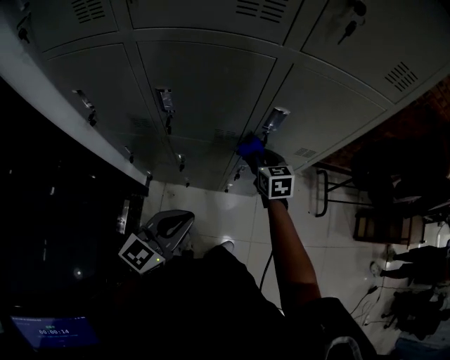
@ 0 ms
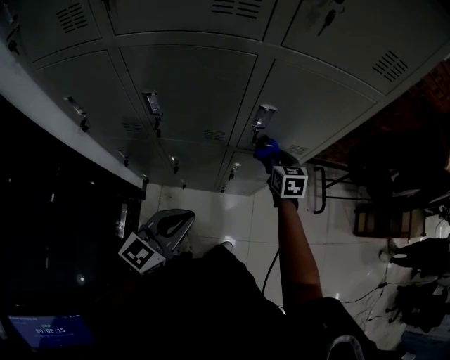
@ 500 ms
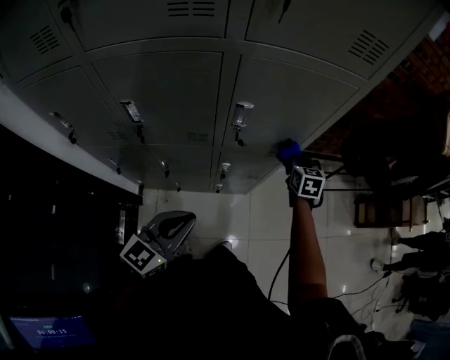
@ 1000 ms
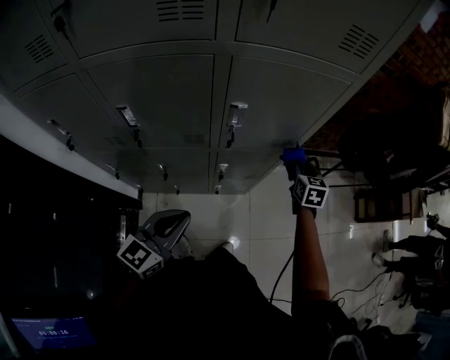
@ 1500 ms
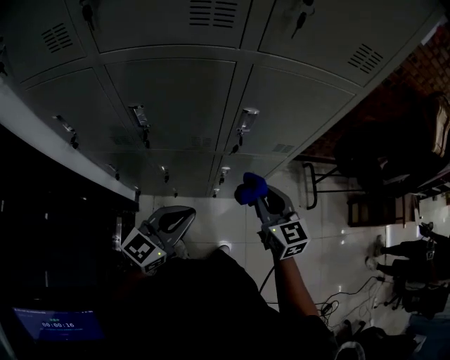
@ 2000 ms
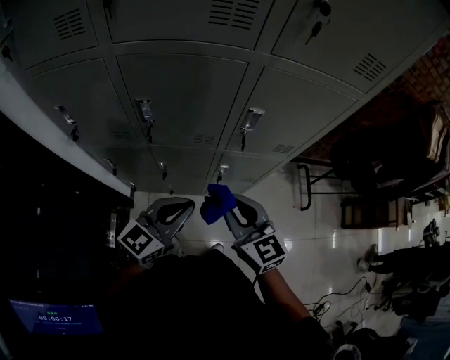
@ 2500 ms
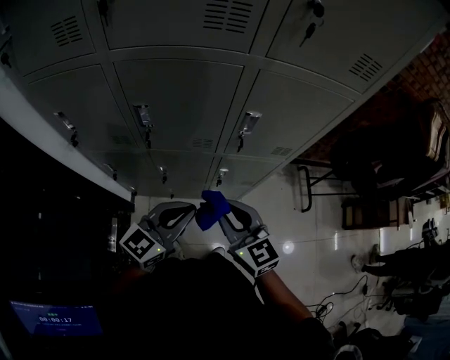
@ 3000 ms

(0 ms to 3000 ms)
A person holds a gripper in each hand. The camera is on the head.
0 ms - 1500 ms: The right gripper moves to the right, about 25 cm, and rotates some 20 degrees, while the left gripper ends up approximately 5 cm from where it was.
1500 ms - 3000 ms: The right gripper goes roughly 40 cm to the left, backward and upward, and swivels roughly 40 degrees.

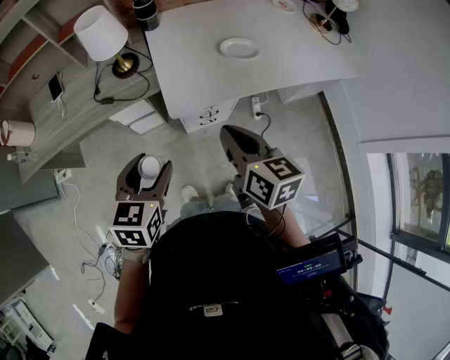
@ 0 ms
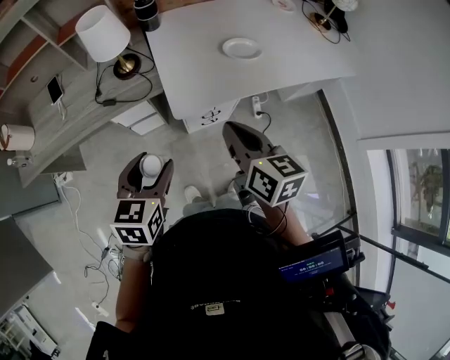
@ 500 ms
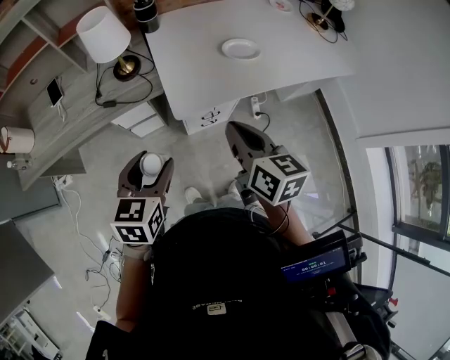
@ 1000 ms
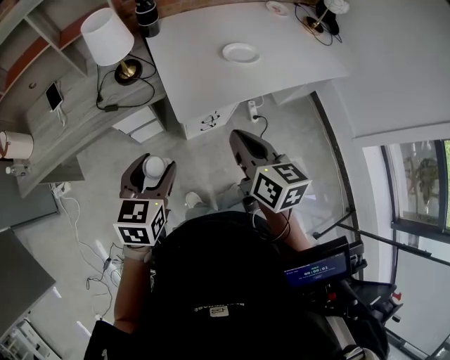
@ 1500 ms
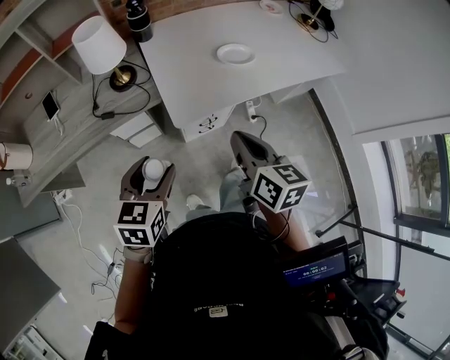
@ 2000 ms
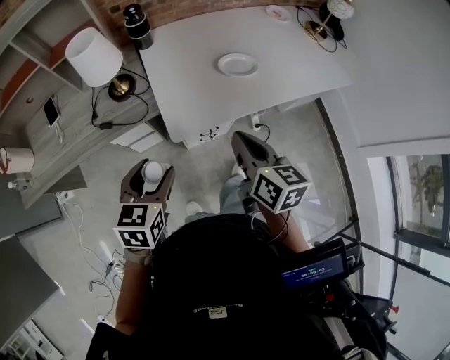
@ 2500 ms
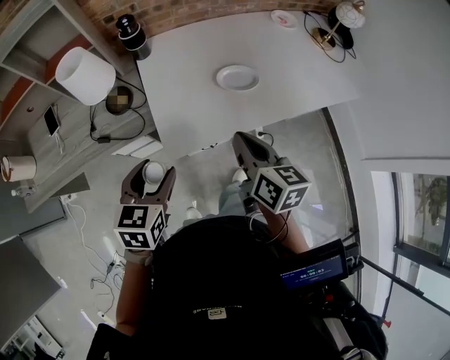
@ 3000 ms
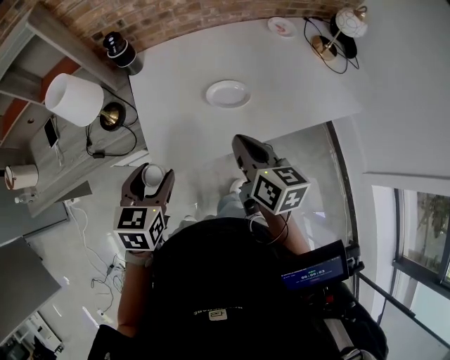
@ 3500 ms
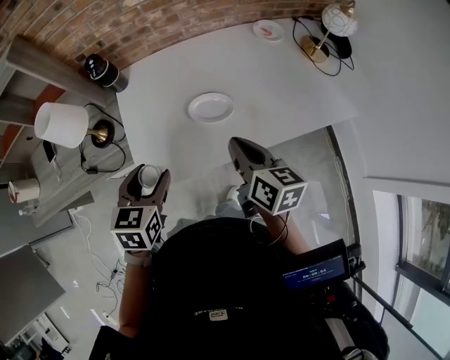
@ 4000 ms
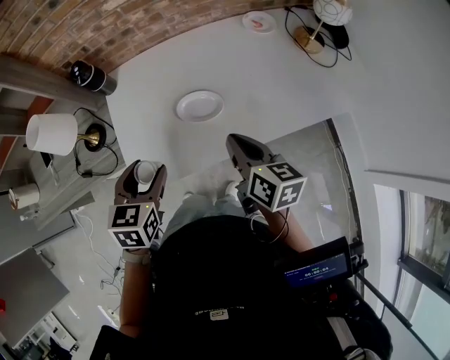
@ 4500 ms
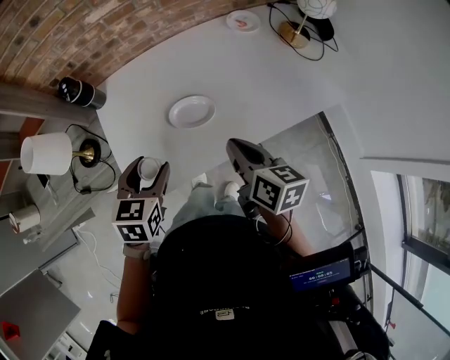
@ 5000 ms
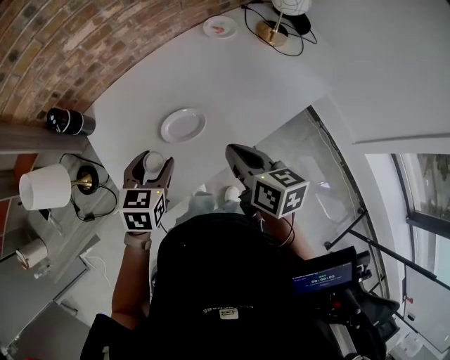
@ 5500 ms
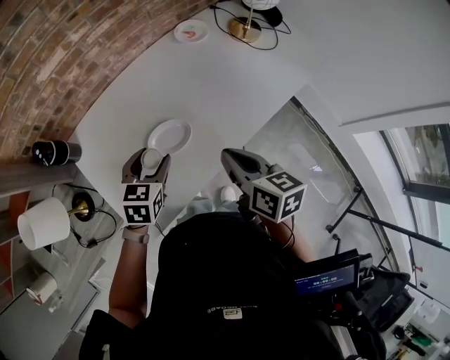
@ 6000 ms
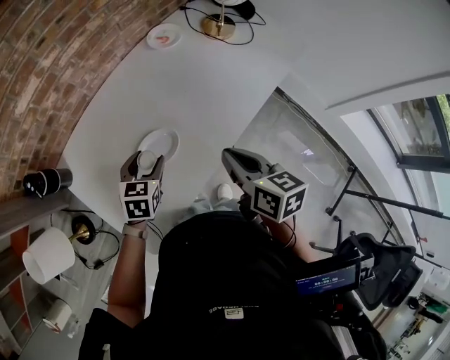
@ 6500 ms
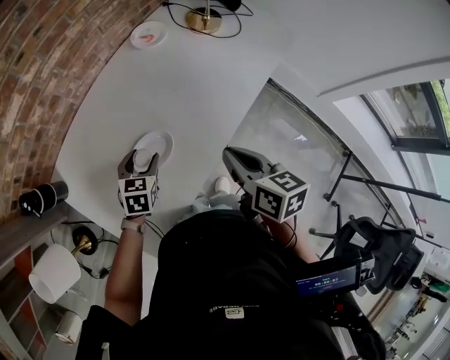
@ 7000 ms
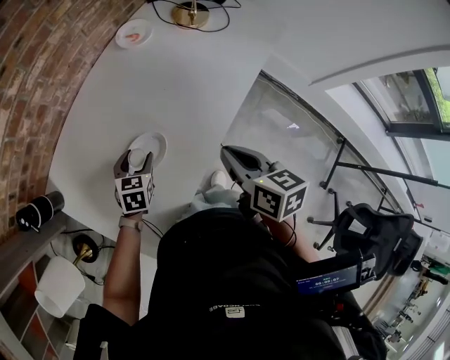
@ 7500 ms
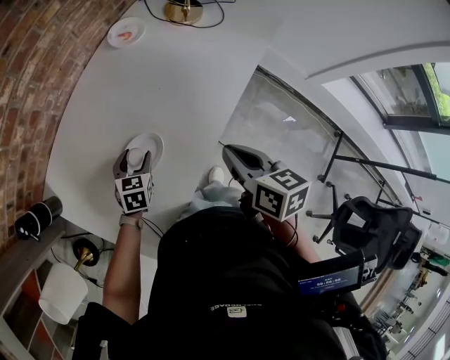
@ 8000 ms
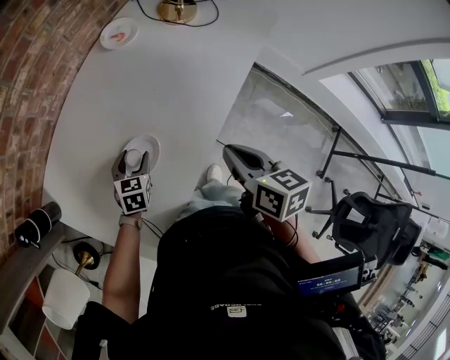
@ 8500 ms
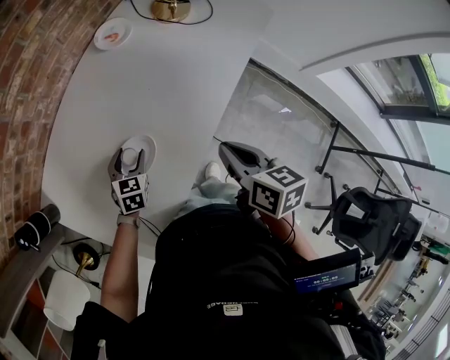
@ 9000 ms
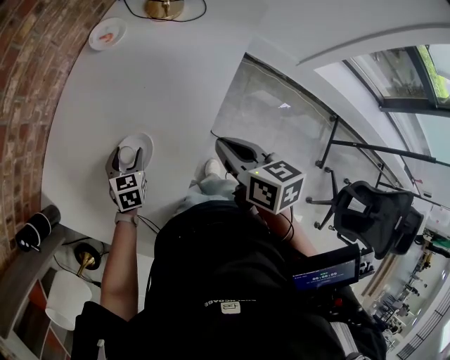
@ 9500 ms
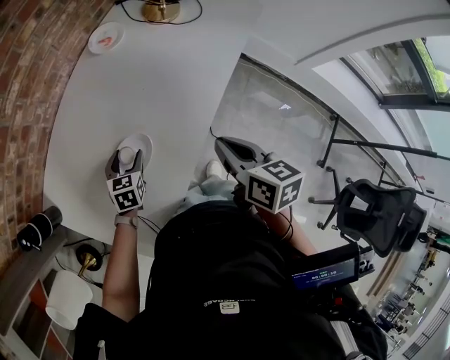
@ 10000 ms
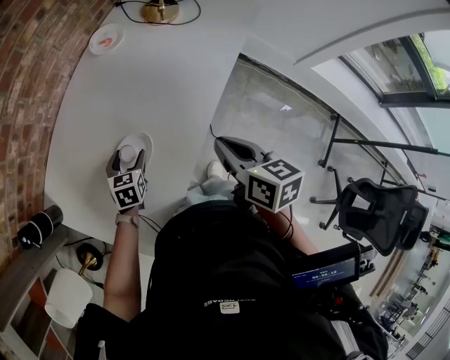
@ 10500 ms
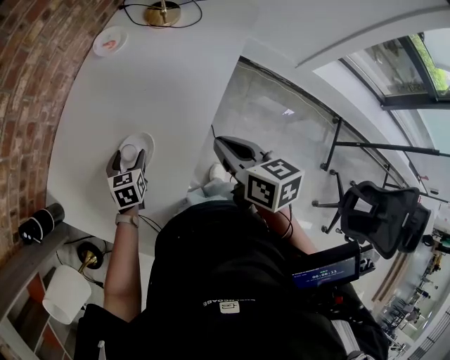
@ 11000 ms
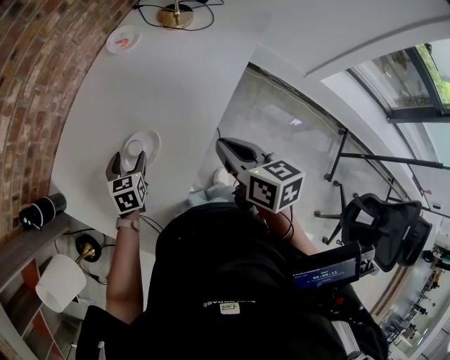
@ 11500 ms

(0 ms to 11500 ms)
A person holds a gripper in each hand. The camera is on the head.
0 ms - 2000 ms: There are only small adjustments of the grippers.
2000 ms - 4000 ms: Both grippers move forward and to the right, roughly 30 cm.
4000 ms - 6000 ms: The left gripper goes roughly 20 cm forward, to the right and downward, and swivels some 30 degrees, while the right gripper moves to the right, some 5 cm.
6000 ms - 7500 ms: The left gripper travels downward and forward by about 15 cm.
7500 ms - 9500 ms: There are only small adjustments of the grippers.
9500 ms - 11500 ms: The left gripper ends up roughly 5 cm from where it was.

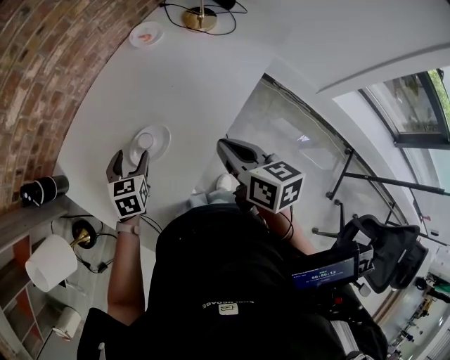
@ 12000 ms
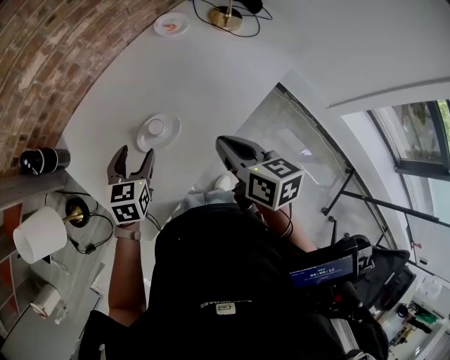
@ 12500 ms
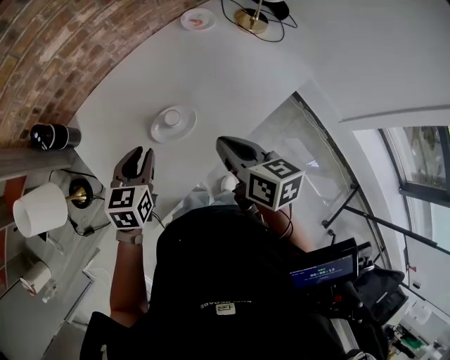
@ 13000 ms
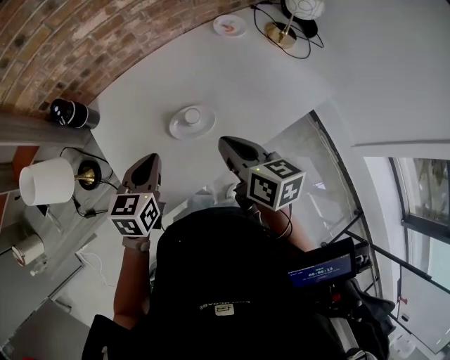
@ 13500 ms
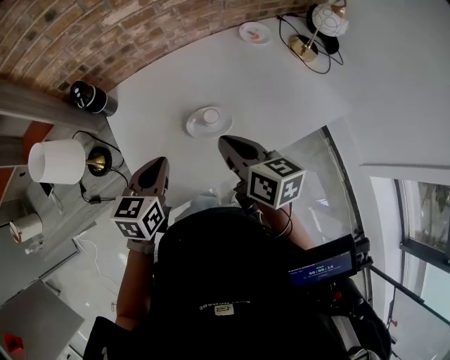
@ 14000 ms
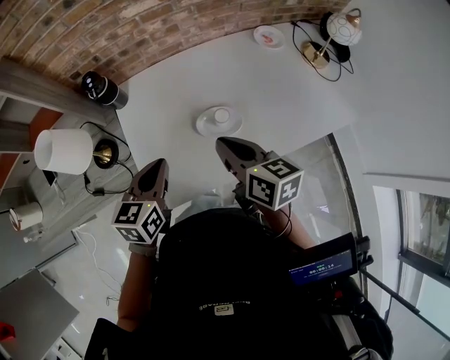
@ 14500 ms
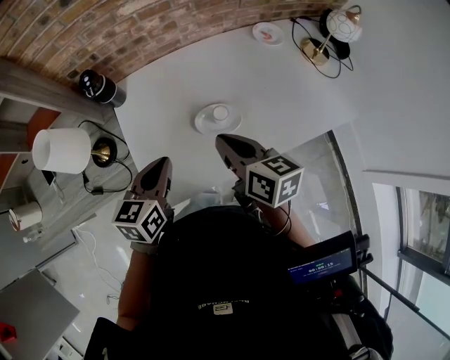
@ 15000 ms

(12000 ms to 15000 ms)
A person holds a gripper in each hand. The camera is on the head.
12000 ms - 13500 ms: The right gripper moves to the left, roughly 10 cm, and turns by some 20 degrees. The left gripper goes some 15 cm backward, upward and to the left, changes its angle by approximately 20 degrees, and closes its fingers.
13500 ms - 15000 ms: The right gripper goes about 10 cm to the left; the left gripper shifts by roughly 5 cm.

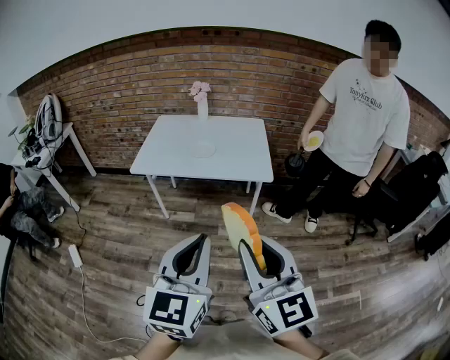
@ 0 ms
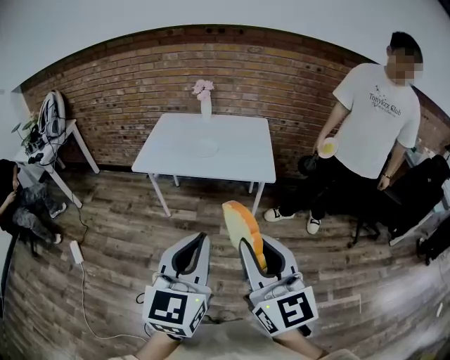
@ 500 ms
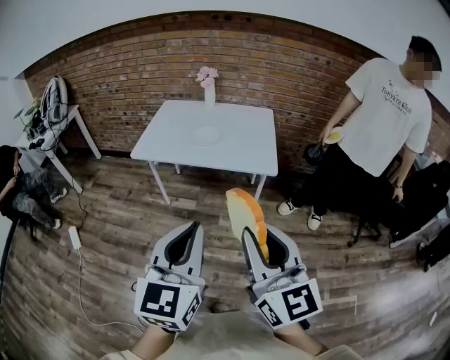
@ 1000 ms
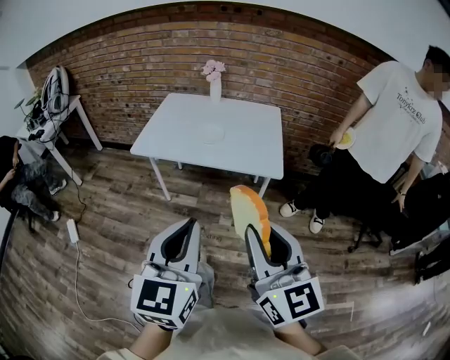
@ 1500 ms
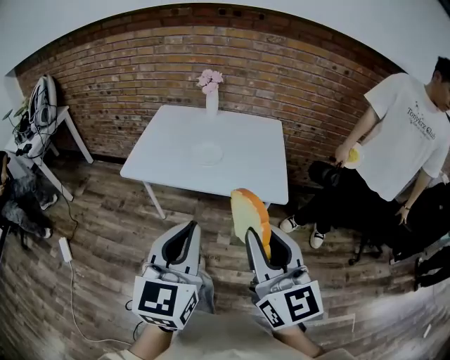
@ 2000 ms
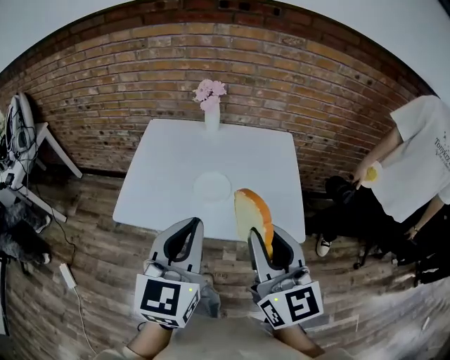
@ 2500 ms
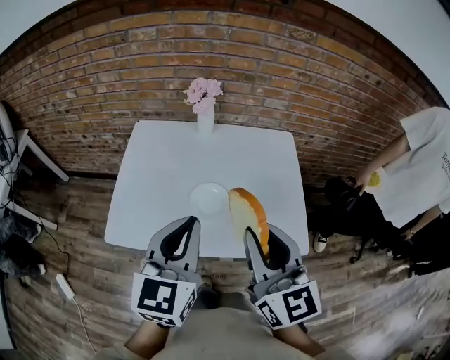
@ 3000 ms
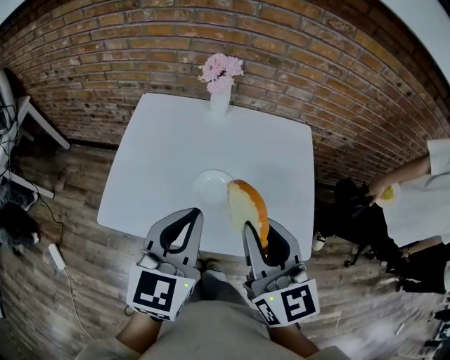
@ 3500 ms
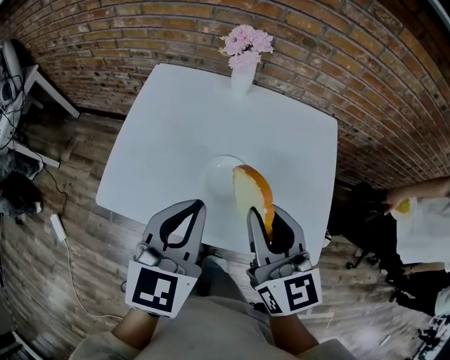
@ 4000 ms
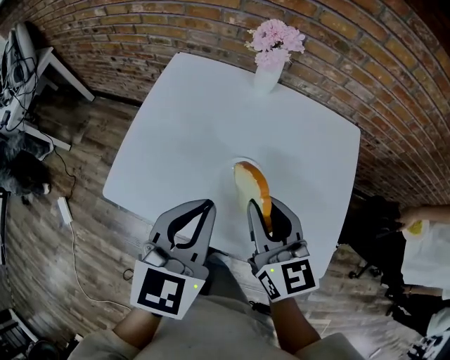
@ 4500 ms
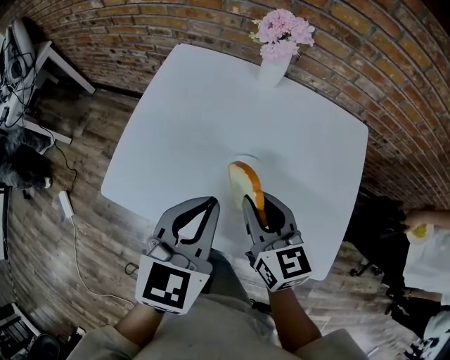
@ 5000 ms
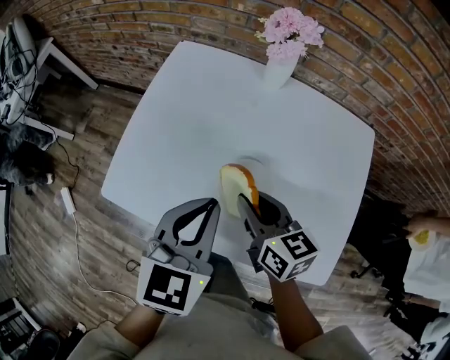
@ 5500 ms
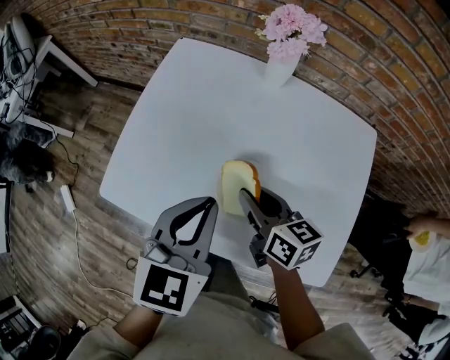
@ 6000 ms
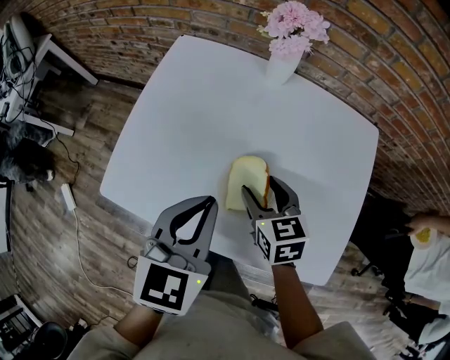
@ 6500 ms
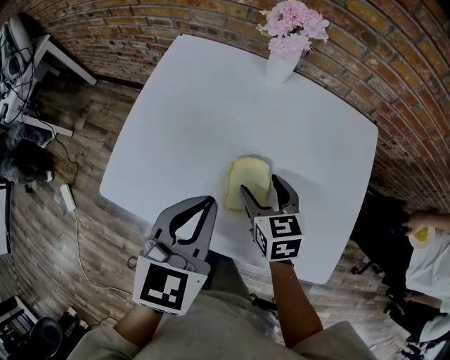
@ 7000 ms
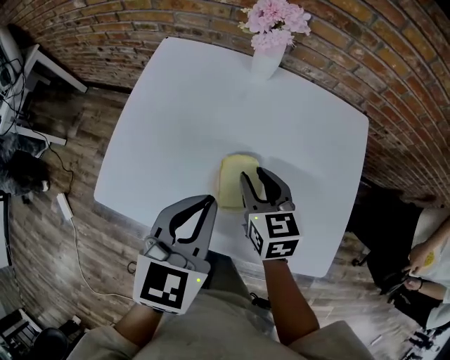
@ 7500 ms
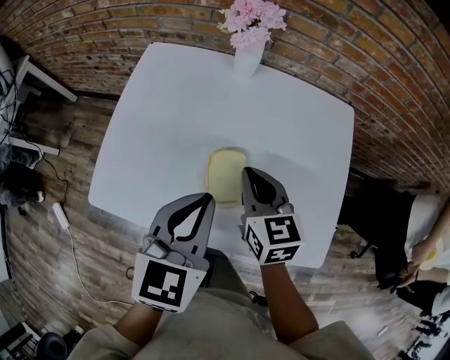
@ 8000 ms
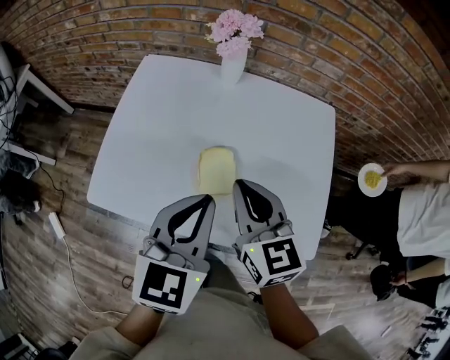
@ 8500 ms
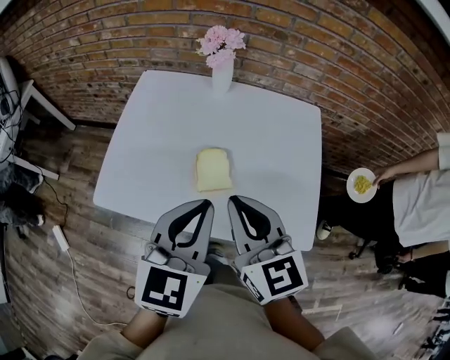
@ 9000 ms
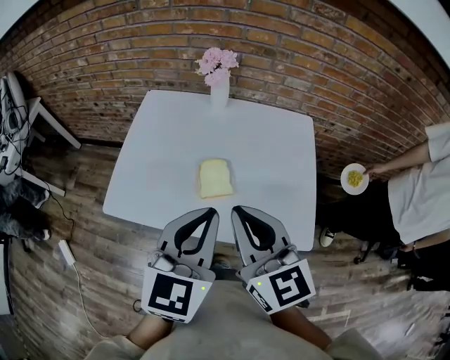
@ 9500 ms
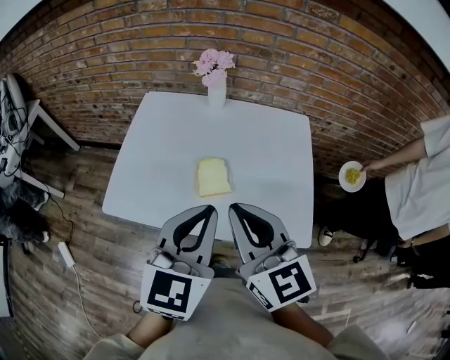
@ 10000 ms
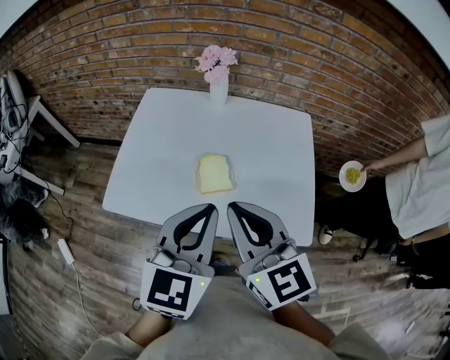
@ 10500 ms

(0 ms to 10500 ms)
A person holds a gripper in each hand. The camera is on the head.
0 ms - 2000 ms: The grippers both shift forward by approximately 20 cm.
2000 ms - 4000 ms: The two grippers travel together, forward, approximately 40 cm.
4000 ms - 6500 ms: The left gripper shifts roughly 10 cm downward and forward; the right gripper goes roughly 25 cm downward and forward, tips its fingers downward by approximately 30 degrees, and opens.
6500 ms - 8500 ms: The left gripper heads to the right, covering some 5 cm. The right gripper is displaced upward and backward by some 15 cm, changes its angle by roughly 20 degrees, and closes.
8500 ms - 10500 ms: Both grippers travel together backward and upward, roughly 15 cm.
